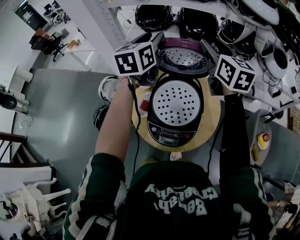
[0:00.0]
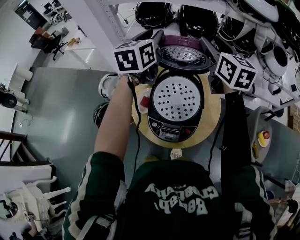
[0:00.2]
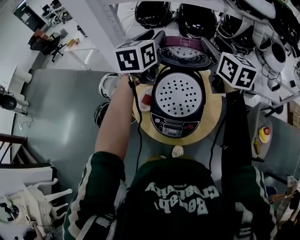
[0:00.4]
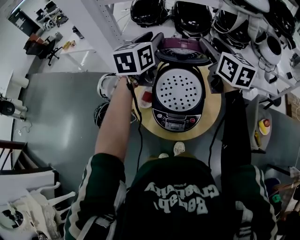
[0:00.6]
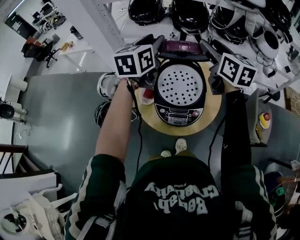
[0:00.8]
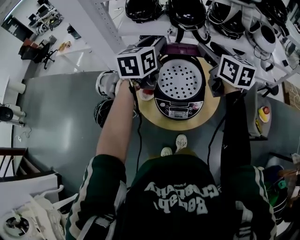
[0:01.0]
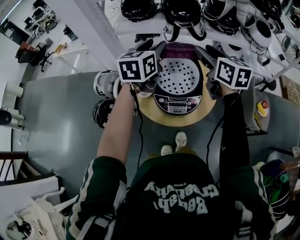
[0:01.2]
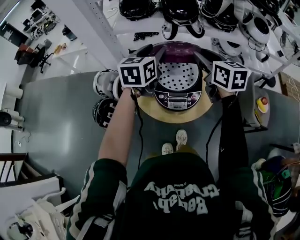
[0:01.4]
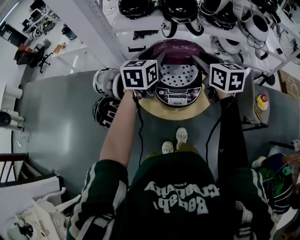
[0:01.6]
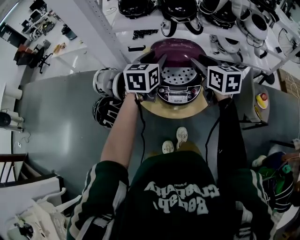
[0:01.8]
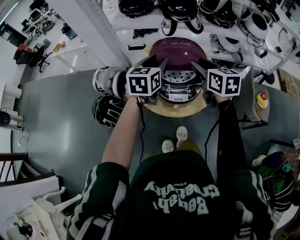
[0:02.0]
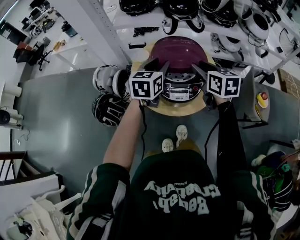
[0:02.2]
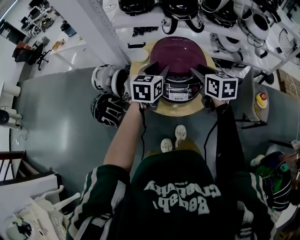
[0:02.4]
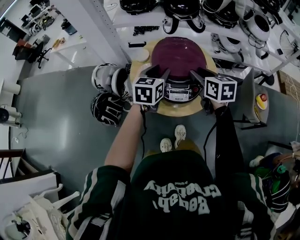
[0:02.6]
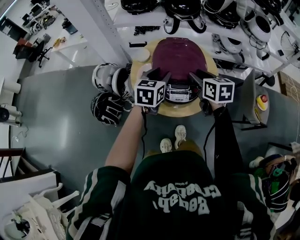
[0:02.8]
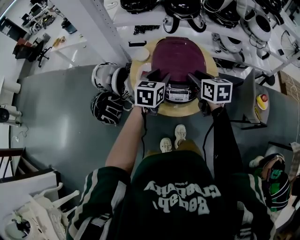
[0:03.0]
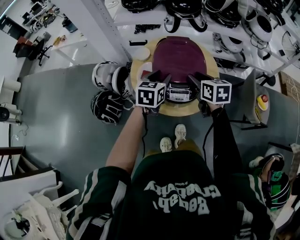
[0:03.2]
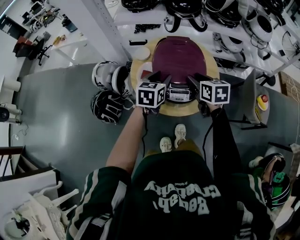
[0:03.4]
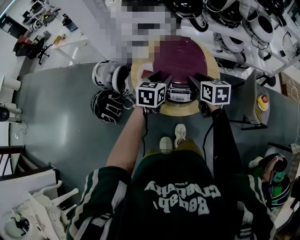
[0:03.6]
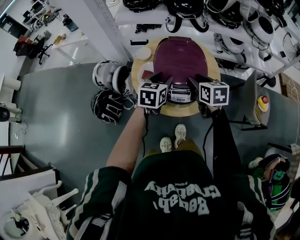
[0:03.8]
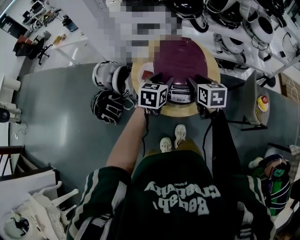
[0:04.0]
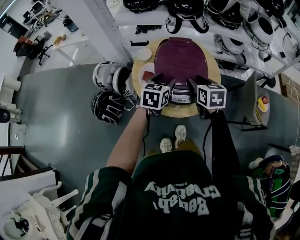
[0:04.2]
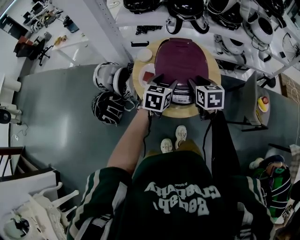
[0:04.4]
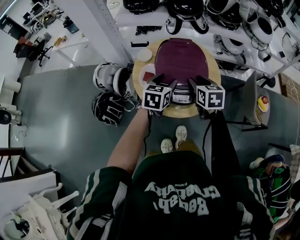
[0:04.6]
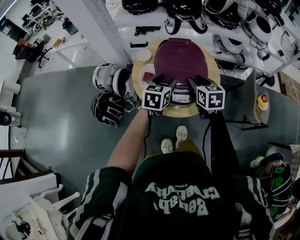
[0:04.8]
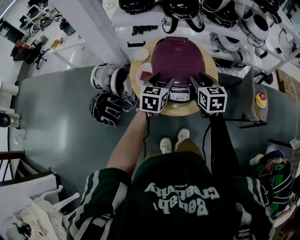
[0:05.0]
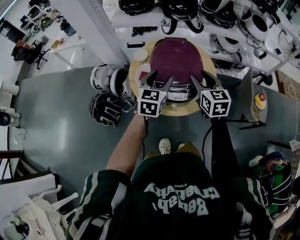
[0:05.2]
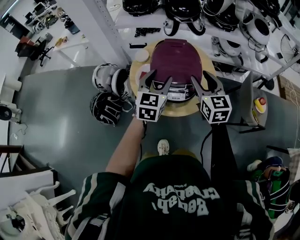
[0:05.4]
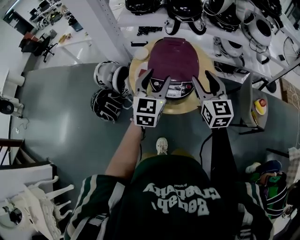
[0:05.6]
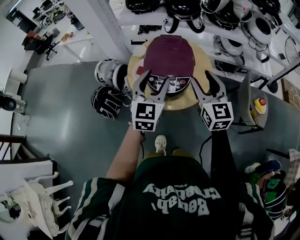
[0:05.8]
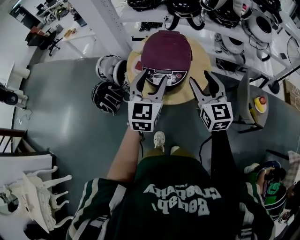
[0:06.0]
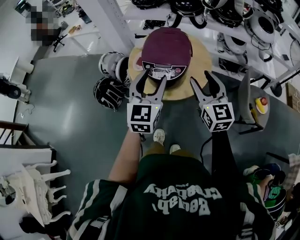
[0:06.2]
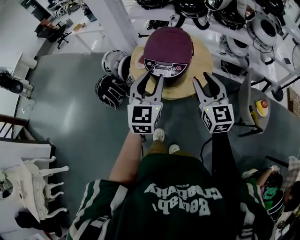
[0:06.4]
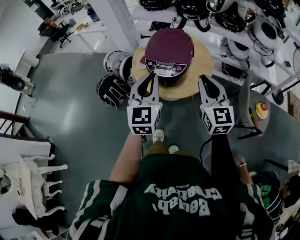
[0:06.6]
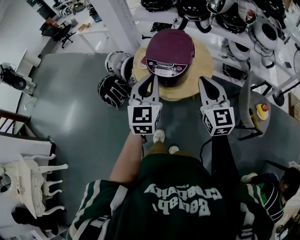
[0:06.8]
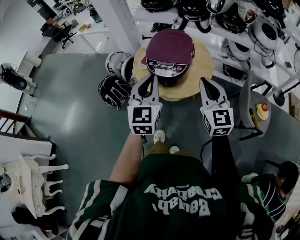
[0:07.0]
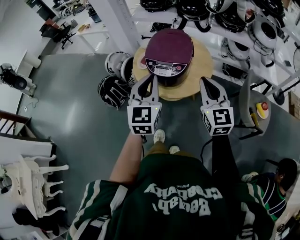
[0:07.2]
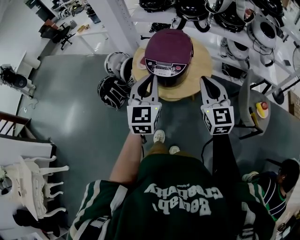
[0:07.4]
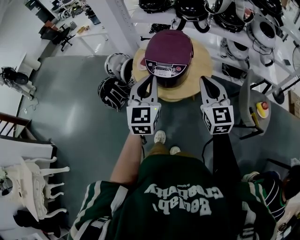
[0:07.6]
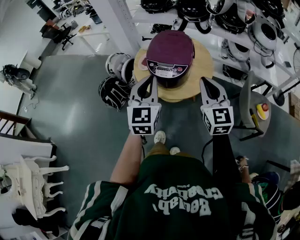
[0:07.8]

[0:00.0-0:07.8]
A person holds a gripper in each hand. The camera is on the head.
0:00.0 to 0:01.6: The grippers both shift backward and downward by some 20 cm.
0:01.6 to 0:03.2: The left gripper travels downward and backward by some 15 cm. Meanwhile the right gripper is displaced downward by about 15 cm.
0:03.2 to 0:04.6: There are only small adjustments of the grippers.
0:04.6 to 0:06.2: Both grippers move backward, upward and to the right, roughly 25 cm. The left gripper changes its angle by approximately 30 degrees, while the right gripper points its fingers roughly 30 degrees further upward.
0:06.2 to 0:07.8: The left gripper changes place by approximately 5 cm, and closes its fingers; the right gripper closes.

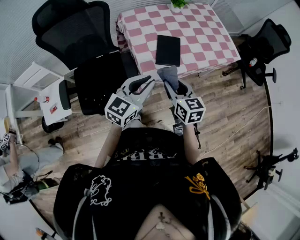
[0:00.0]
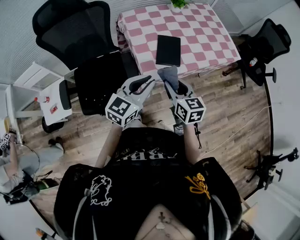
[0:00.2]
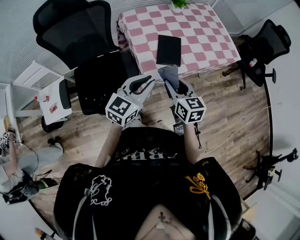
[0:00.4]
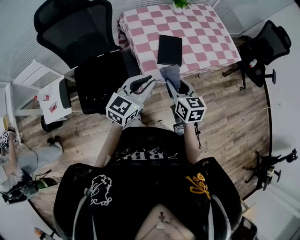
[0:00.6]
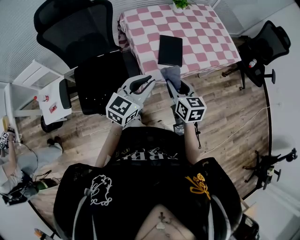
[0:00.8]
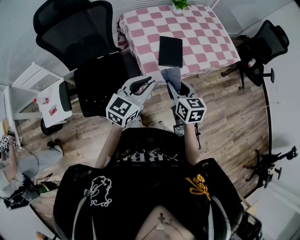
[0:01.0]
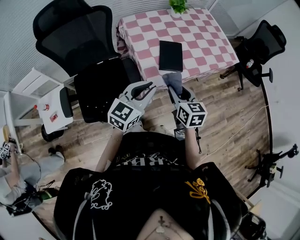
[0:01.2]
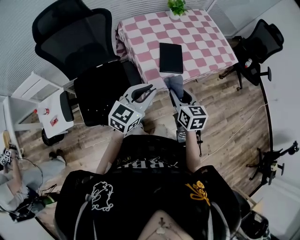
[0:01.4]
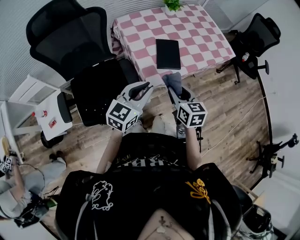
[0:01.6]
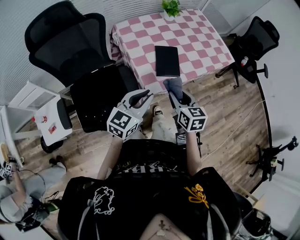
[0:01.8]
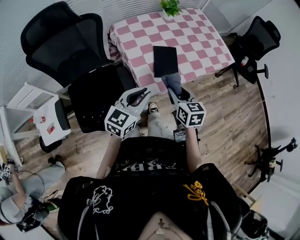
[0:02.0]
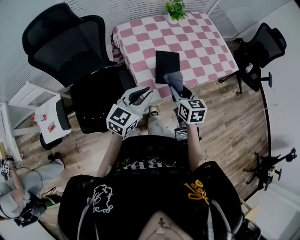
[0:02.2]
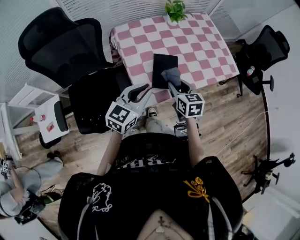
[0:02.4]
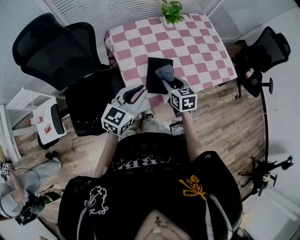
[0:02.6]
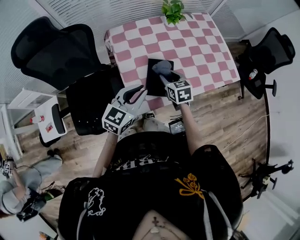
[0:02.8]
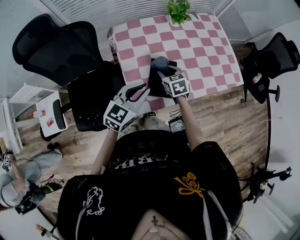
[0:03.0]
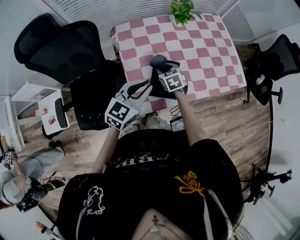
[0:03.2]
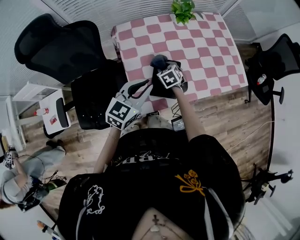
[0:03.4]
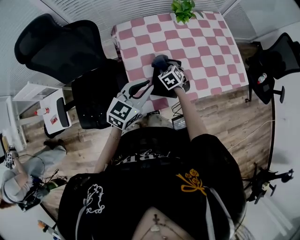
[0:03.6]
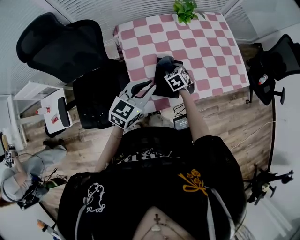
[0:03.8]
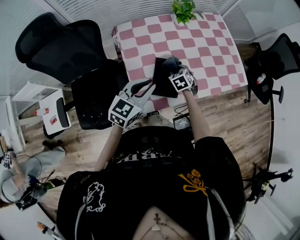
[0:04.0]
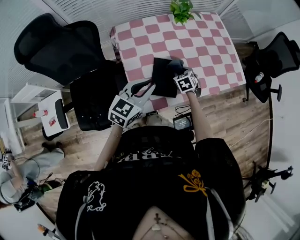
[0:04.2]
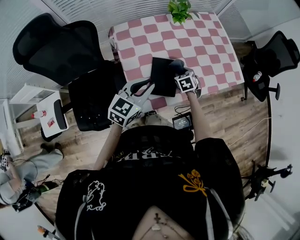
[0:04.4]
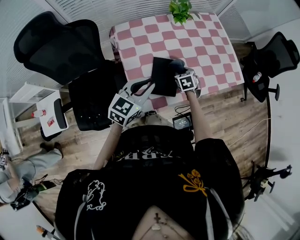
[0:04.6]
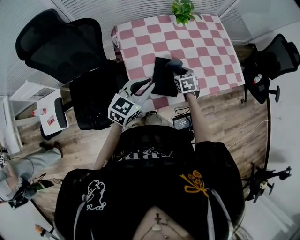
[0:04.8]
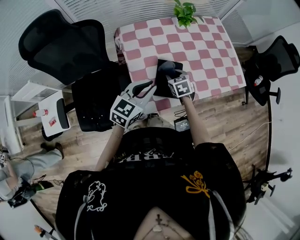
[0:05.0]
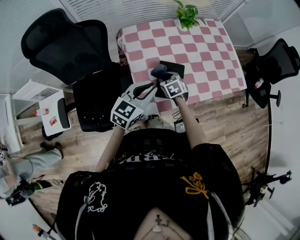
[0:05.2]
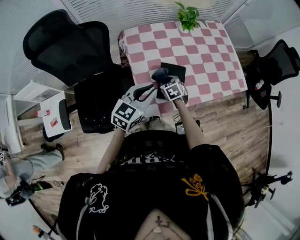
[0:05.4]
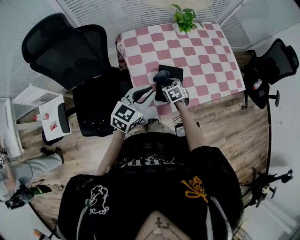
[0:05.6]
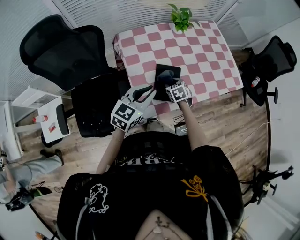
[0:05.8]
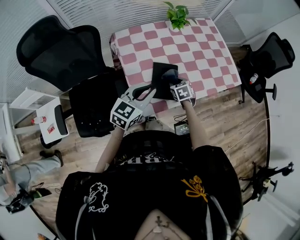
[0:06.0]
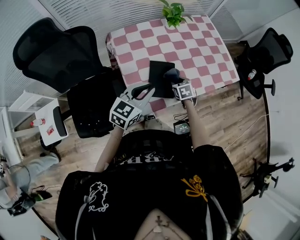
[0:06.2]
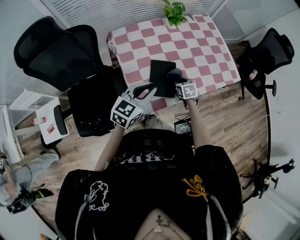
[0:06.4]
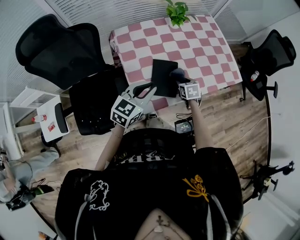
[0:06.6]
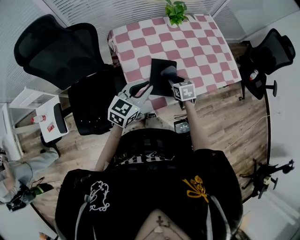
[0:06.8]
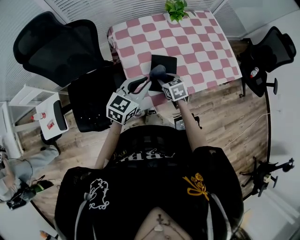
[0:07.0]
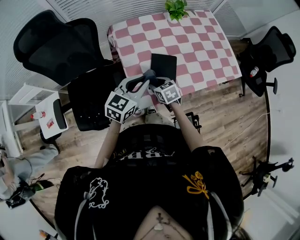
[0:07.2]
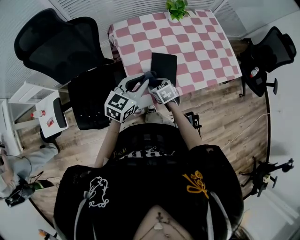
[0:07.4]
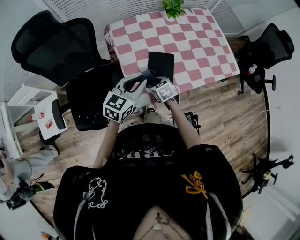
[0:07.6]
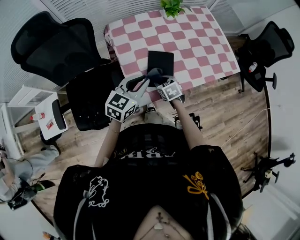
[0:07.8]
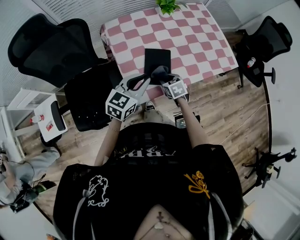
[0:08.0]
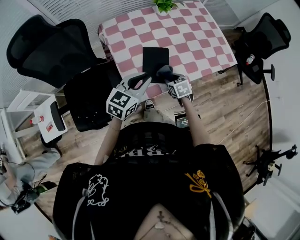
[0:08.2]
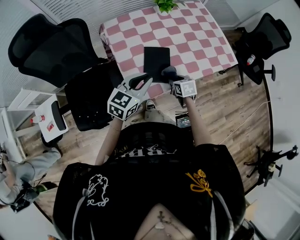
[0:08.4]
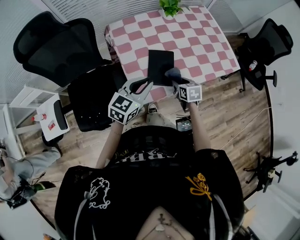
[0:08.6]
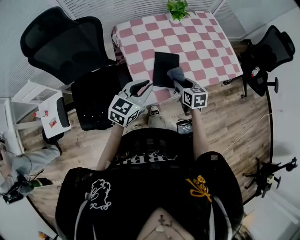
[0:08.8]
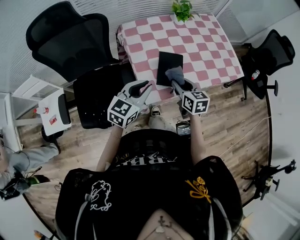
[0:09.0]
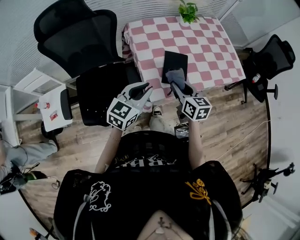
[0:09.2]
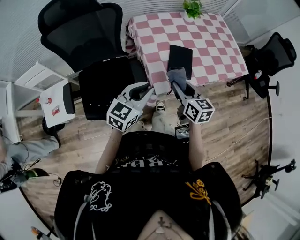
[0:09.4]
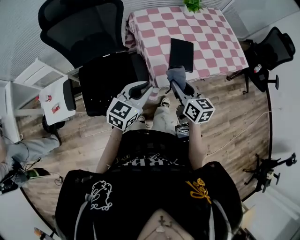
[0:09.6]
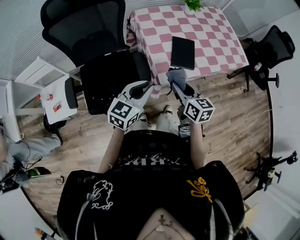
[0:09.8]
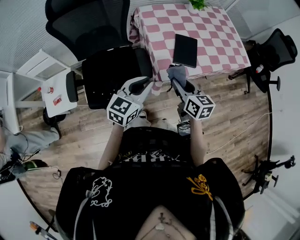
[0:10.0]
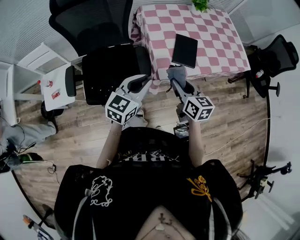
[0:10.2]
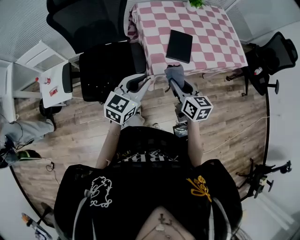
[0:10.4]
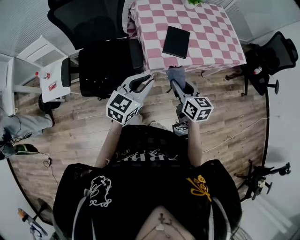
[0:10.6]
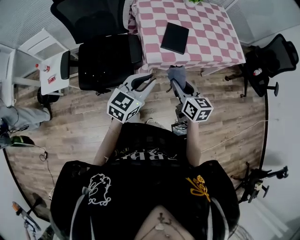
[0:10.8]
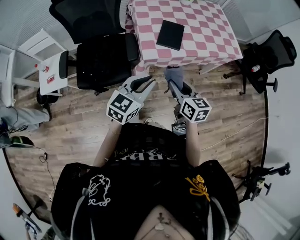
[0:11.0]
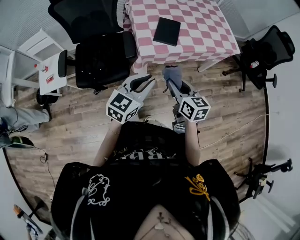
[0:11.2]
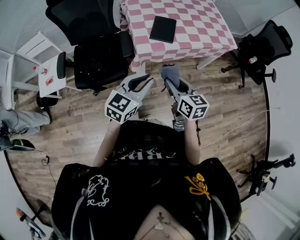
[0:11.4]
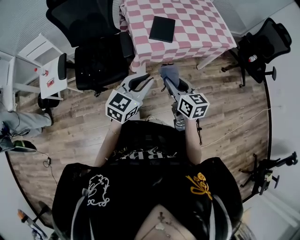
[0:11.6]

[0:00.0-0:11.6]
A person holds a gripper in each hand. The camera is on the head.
0:00.0 to 0:01.4: There are only small adjustments of the grippers.
0:01.4 to 0:02.8: Both grippers travel together forward, about 20 cm.
0:02.8 to 0:04.4: The right gripper is displaced downward, to the right and forward by about 15 cm, and changes its angle by about 20 degrees.
0:04.4 to 0:05.8: The right gripper goes about 10 cm to the left and backward.
0:05.8 to 0:07.2: The right gripper heads backward and to the left, covering approximately 10 cm.
0:07.2 to 0:08.8: The right gripper shifts some 15 cm to the right and upward, and turns by approximately 20 degrees.
0:08.8 to 0:10.2: The right gripper goes some 25 cm backward, to the left and upward. The left gripper heads backward and to the left, covering approximately 20 cm.
0:10.2 to 0:11.6: The right gripper travels backward and to the right by some 20 cm. The left gripper shifts roughly 25 cm to the right and backward.

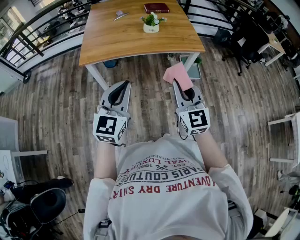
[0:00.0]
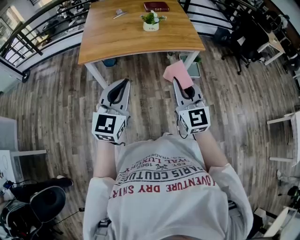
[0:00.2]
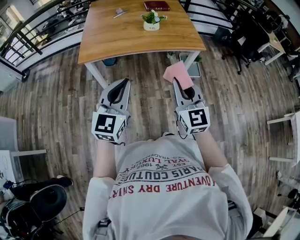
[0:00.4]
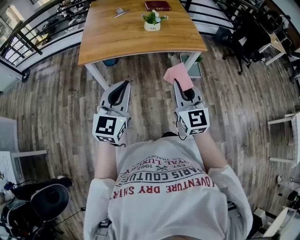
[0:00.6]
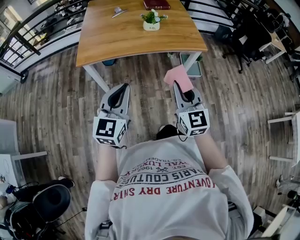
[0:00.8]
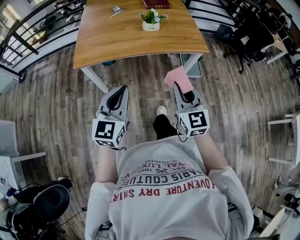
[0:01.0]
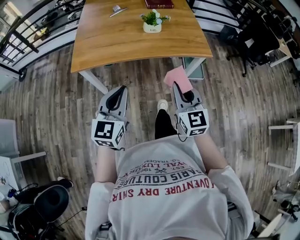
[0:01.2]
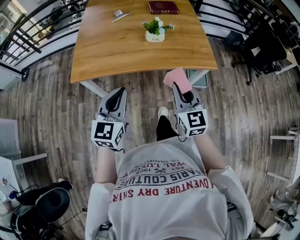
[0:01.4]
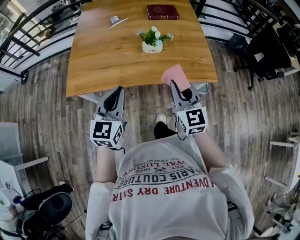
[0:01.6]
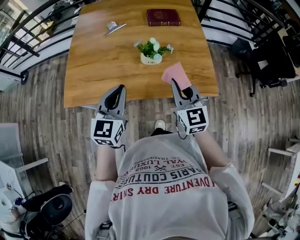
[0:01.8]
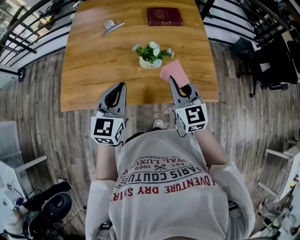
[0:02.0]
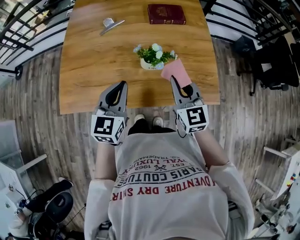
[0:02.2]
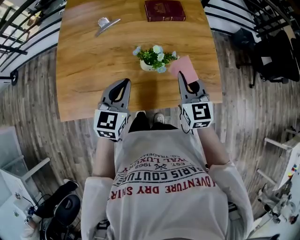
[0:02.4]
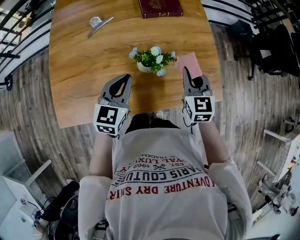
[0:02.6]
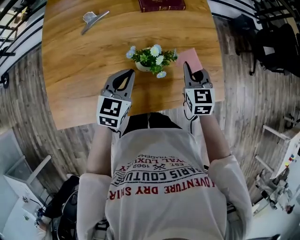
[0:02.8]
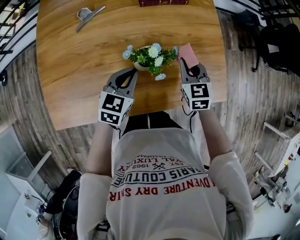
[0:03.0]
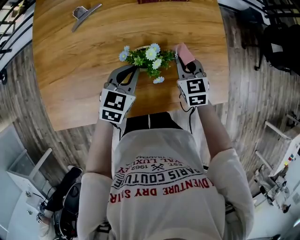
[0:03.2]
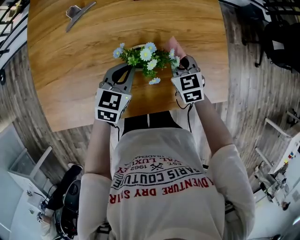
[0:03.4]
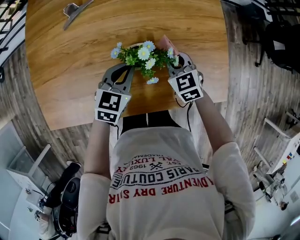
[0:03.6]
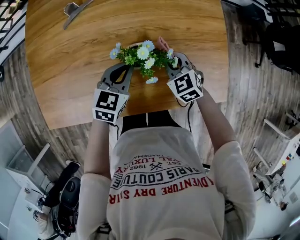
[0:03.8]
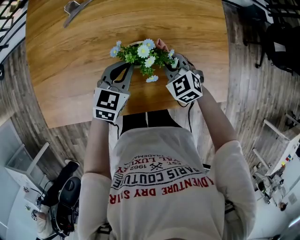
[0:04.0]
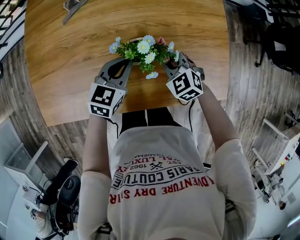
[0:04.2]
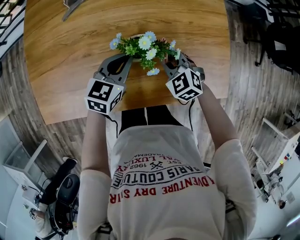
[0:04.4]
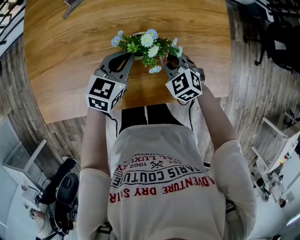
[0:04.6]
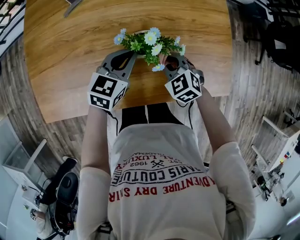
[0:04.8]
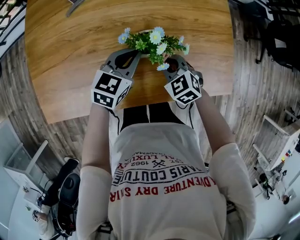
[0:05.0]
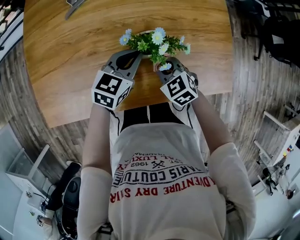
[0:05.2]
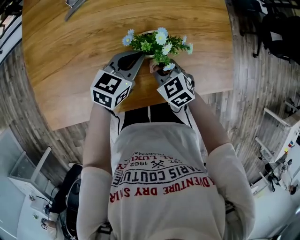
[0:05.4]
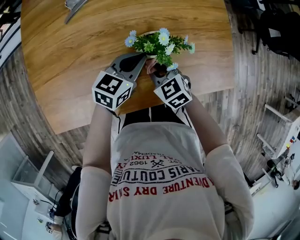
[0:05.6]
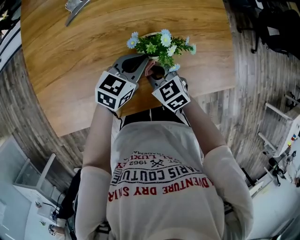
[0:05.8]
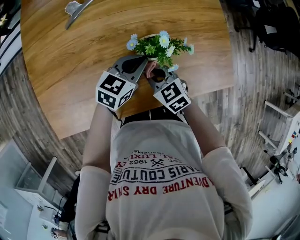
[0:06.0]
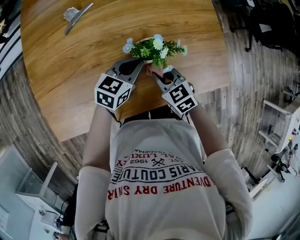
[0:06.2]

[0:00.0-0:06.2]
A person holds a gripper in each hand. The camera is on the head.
0:00.0 to 0:01.6: Both grippers travel together forward, roughly 30 cm.
0:01.6 to 0:03.2: Both grippers travel together forward and downward, roughly 35 cm. The right gripper swivels approximately 30 degrees, while the left gripper rotates approximately 30 degrees.
0:03.2 to 0:04.6: The right gripper goes approximately 5 cm to the left, and turns by approximately 30 degrees.
0:04.6 to 0:06.2: The right gripper moves to the left, about 5 cm, and rotates approximately 20 degrees.
